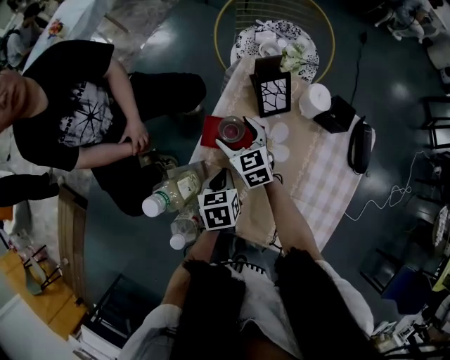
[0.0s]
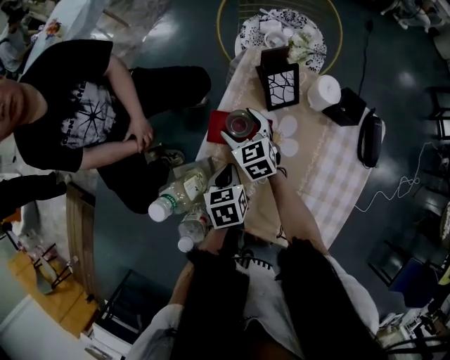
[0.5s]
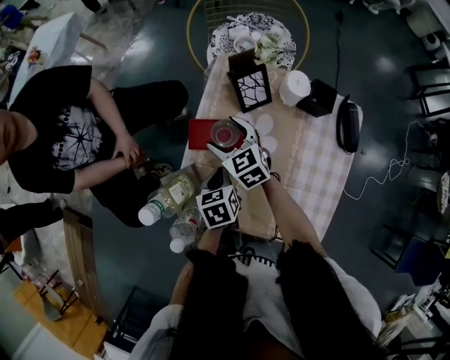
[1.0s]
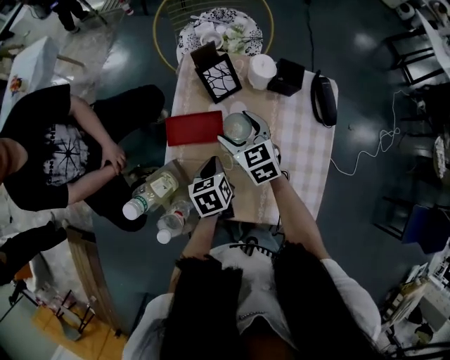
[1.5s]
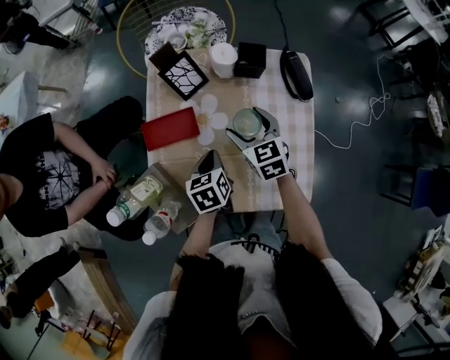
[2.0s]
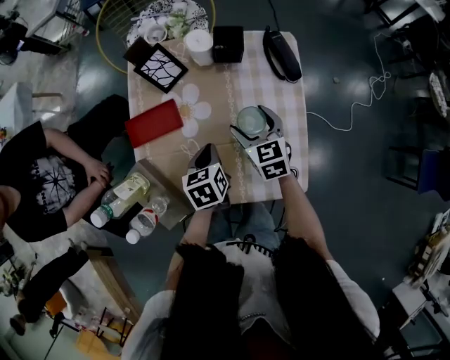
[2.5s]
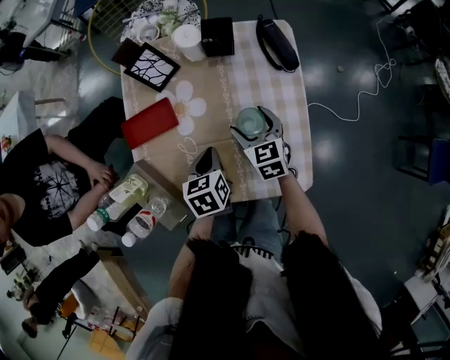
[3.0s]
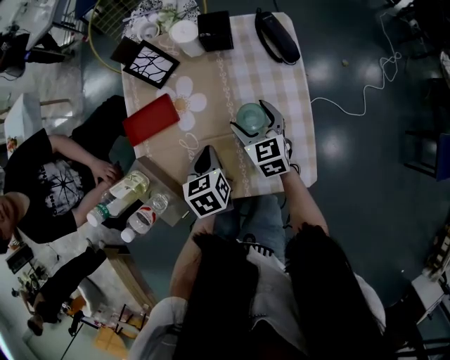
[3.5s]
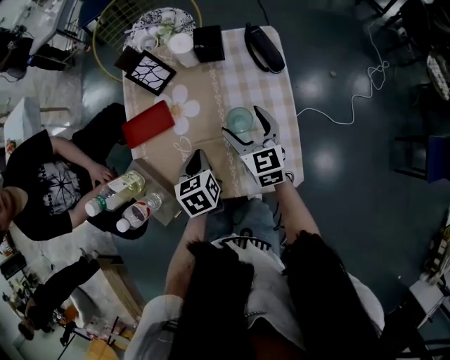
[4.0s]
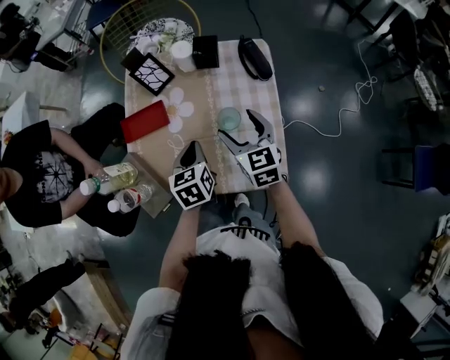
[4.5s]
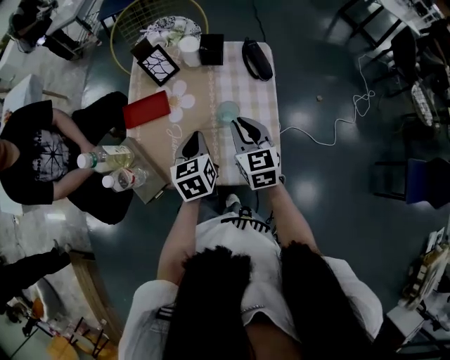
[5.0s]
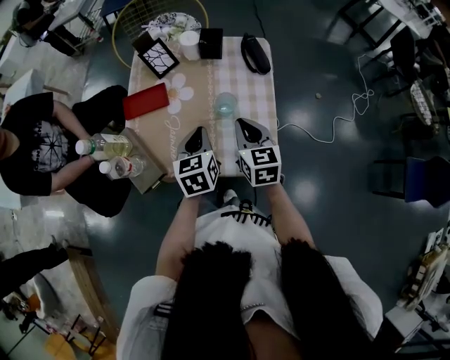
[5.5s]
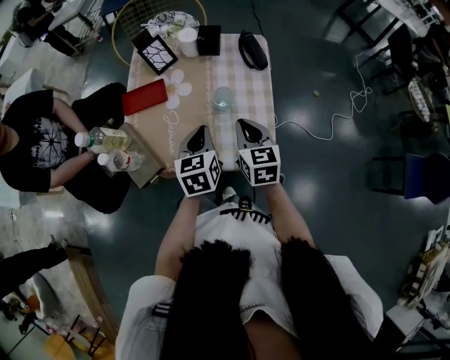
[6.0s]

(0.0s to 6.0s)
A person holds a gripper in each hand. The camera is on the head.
0.0s - 2.0s: The right gripper goes approximately 25 cm to the right and backward, and turns by some 30 degrees. The left gripper goes approximately 10 cm to the right.
2.0s - 4.0s: The right gripper heads to the right and backward, covering approximately 10 cm; the left gripper heads backward, covering roughly 5 cm.
4.0s - 6.0s: The left gripper goes some 15 cm upward, backward and to the right. Meanwhile the right gripper heads backward and upward, covering roughly 15 cm, and closes its fingers.

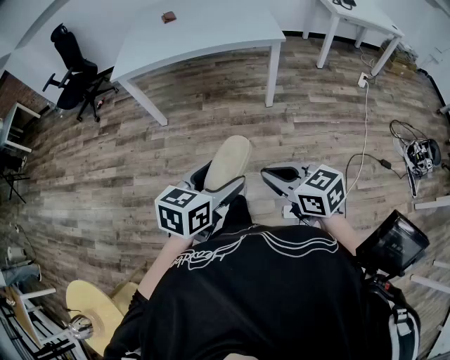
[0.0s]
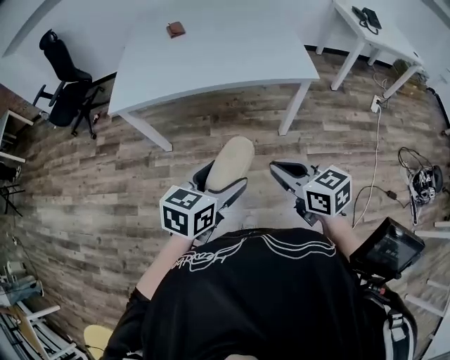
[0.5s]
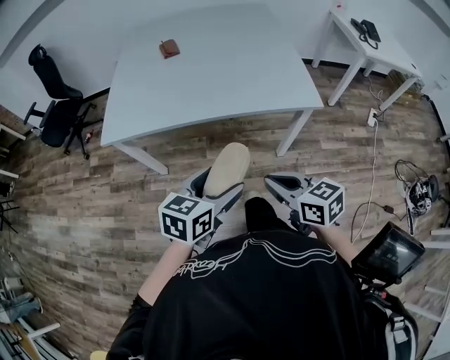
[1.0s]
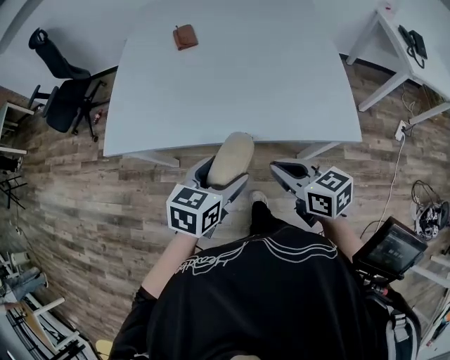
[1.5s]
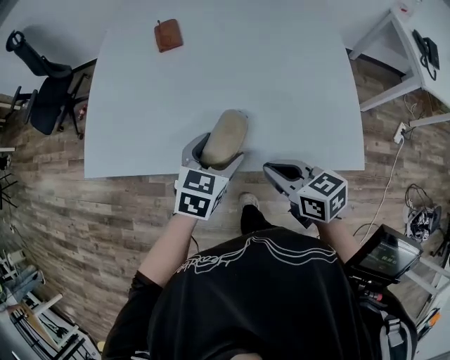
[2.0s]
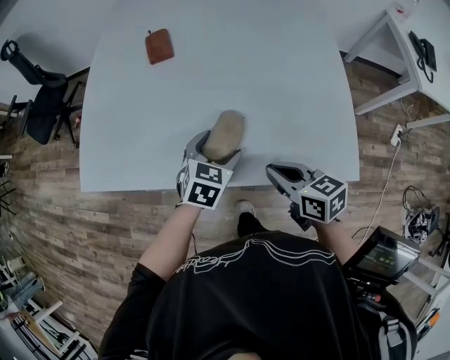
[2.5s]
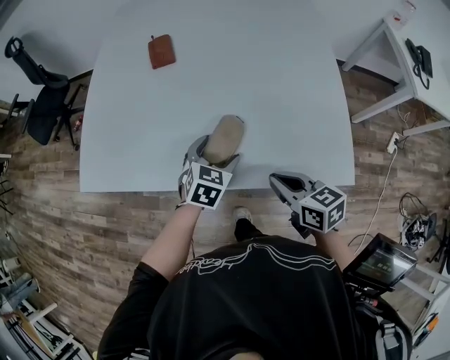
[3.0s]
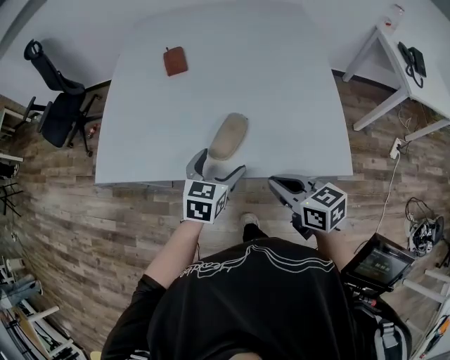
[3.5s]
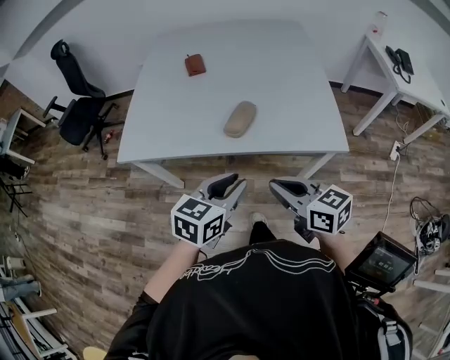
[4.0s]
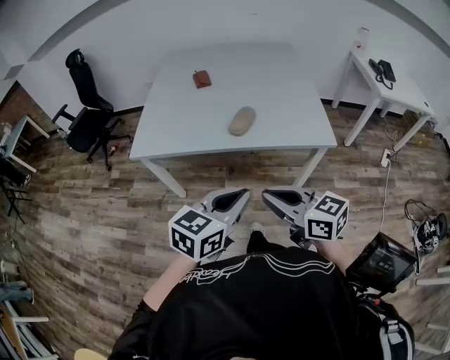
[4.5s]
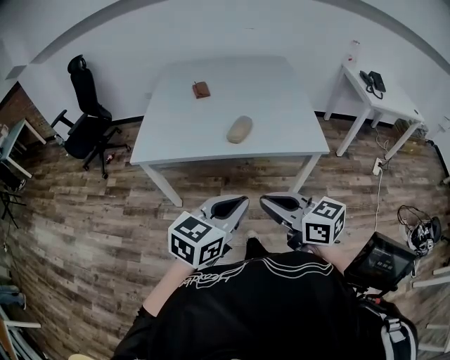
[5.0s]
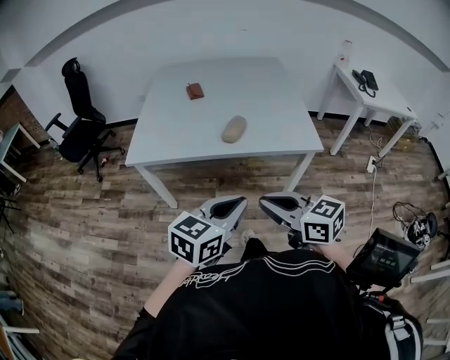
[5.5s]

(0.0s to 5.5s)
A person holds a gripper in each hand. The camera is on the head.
0.0s - 2.0s: The pair of grippers is taken forward, roughly 70 cm.
2.0s - 3.5s: The left gripper reaches approximately 5 cm downward, then returns, while the right gripper shifts by about 5 cm.
3.5s - 5.5s: The two grippers go about 40 cm backward and upward. The left gripper rotates some 30 degrees, and closes up.

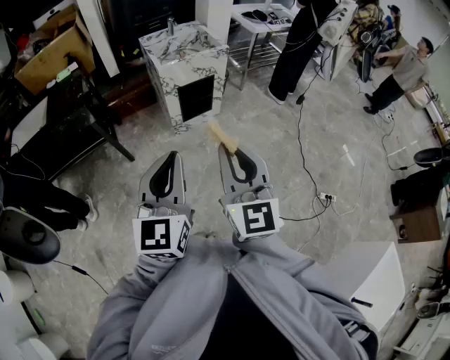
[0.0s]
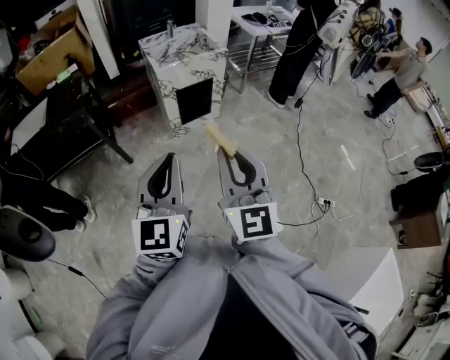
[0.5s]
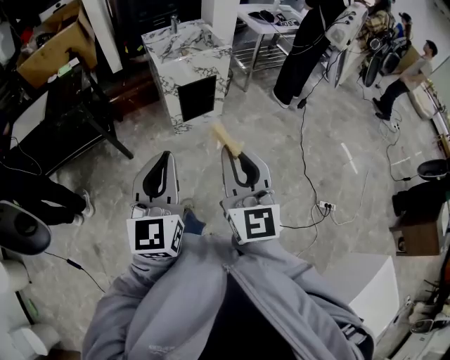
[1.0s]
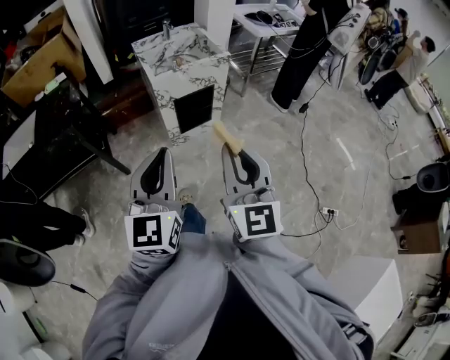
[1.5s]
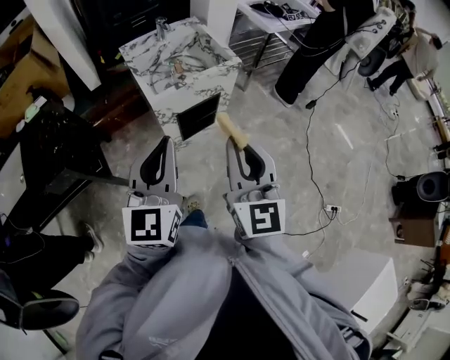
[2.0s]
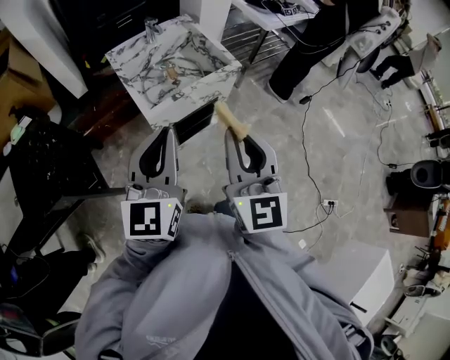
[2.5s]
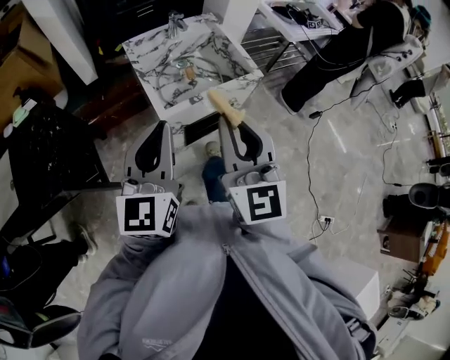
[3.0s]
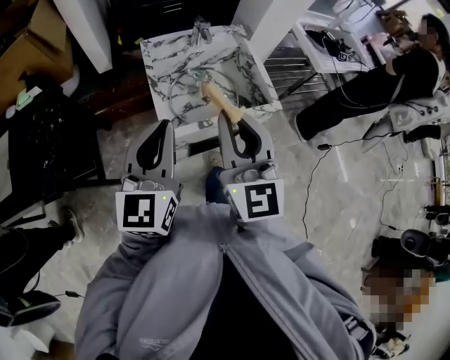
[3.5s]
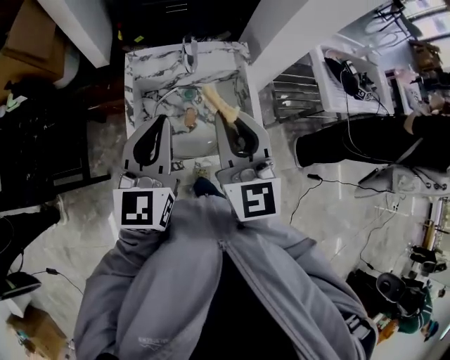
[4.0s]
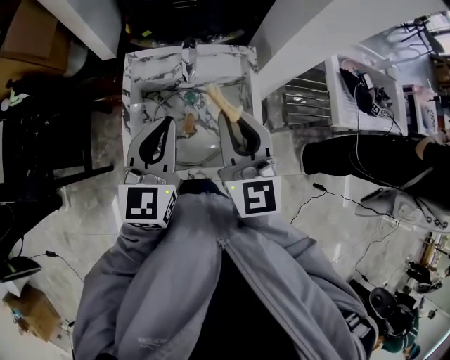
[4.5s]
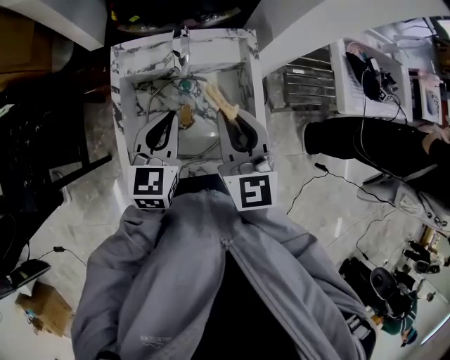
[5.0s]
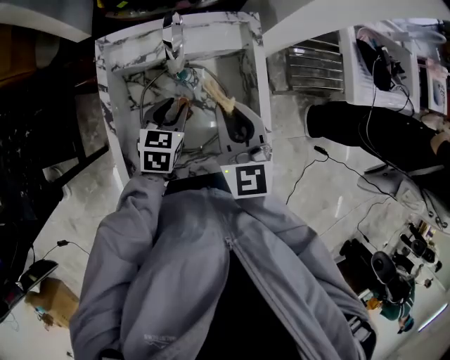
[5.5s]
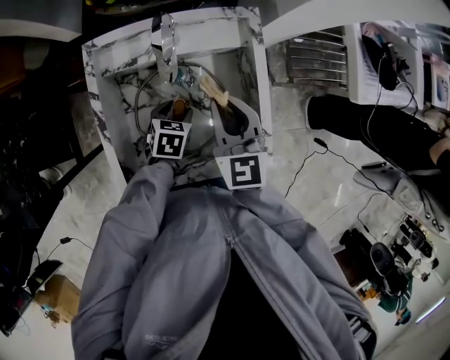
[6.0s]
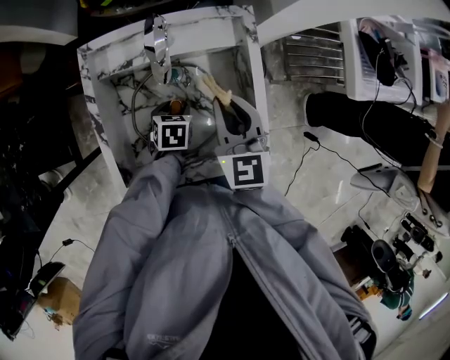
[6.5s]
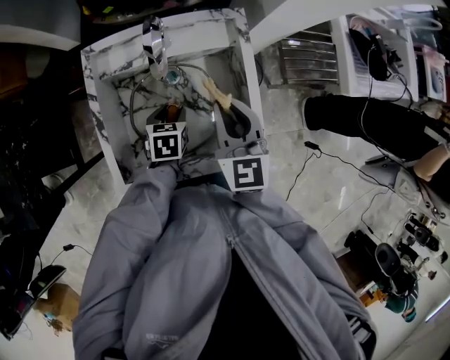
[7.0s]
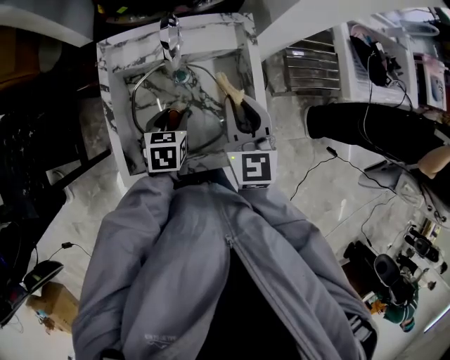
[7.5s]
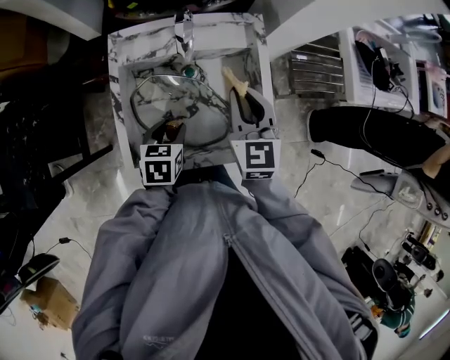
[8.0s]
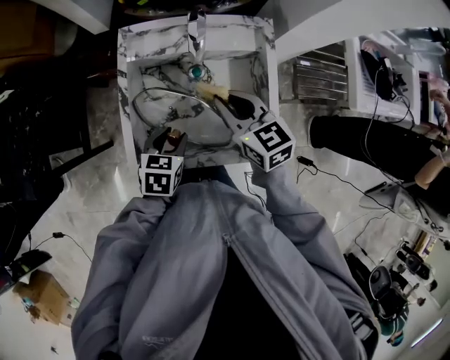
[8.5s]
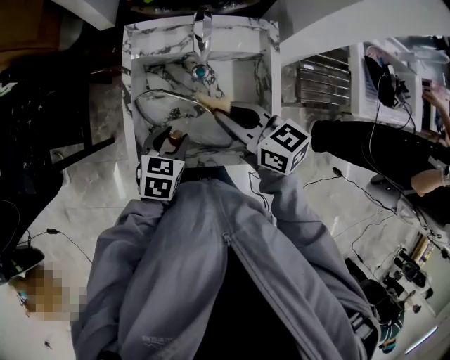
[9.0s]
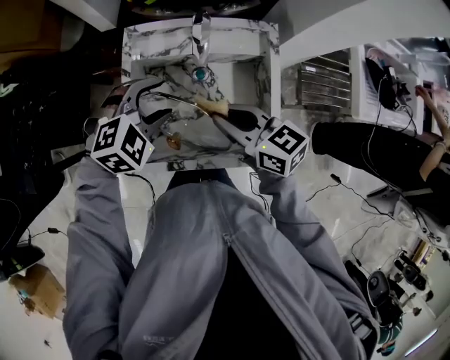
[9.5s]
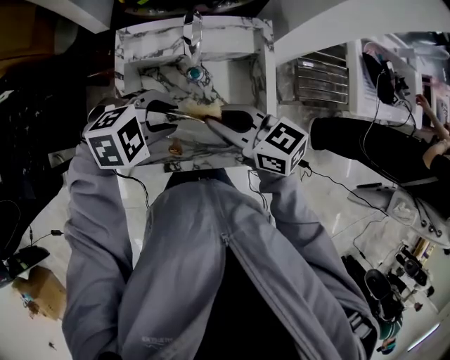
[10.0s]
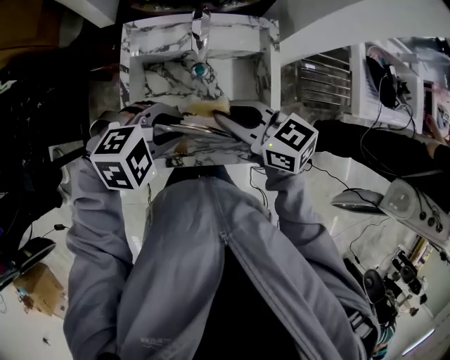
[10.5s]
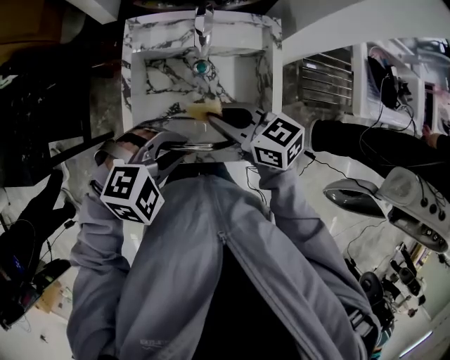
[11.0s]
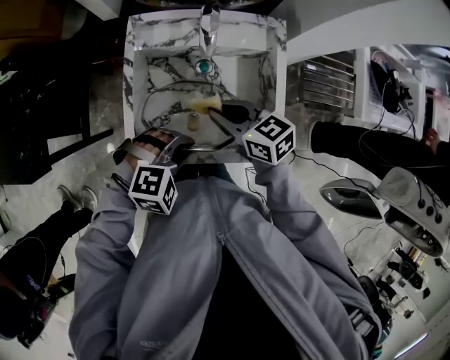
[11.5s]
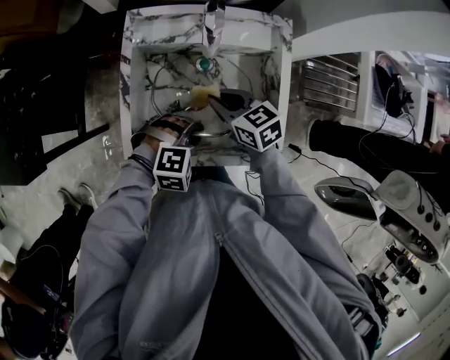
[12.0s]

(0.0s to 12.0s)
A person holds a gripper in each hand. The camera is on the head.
0.0s - 2.0s: The two grippers travel together, forward, approximately 40 cm.
2.0s - 4.0s: The two grippers travel together, approximately 50 cm. The right gripper swivels some 30 degrees. Meanwhile the left gripper rotates approximately 20 degrees.
4.0s - 6.0s: The left gripper is displaced downward by approximately 40 cm, tips its fingers downward by approximately 60 degrees, and opens its fingers. Meanwhile the right gripper is displaced downward and forward by some 30 cm, and changes its angle by roughly 20 degrees.
6.0s - 8.0s: The right gripper shifts by approximately 5 cm. Meanwhile the left gripper goes roughly 15 cm upward and backward.
8.0s - 10.0s: The right gripper shifts by roughly 10 cm, and swivels some 50 degrees, while the left gripper goes roughly 10 cm upward, and rotates around the line of its fingers by approximately 70 degrees, clockwise from behind.
10.0s - 12.0s: The two grippers go some 15 cm downward.

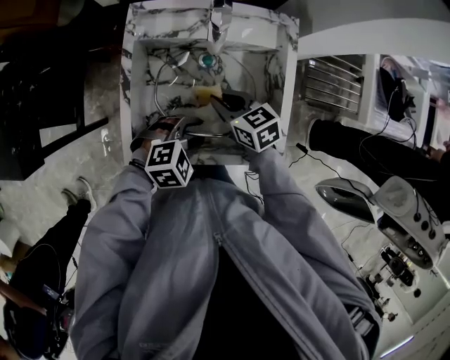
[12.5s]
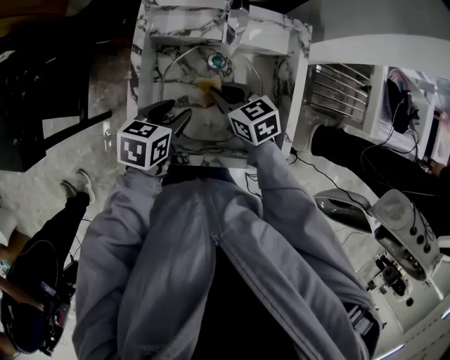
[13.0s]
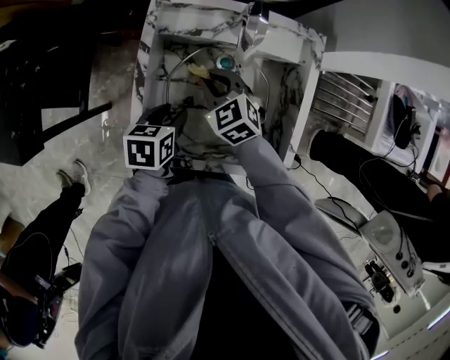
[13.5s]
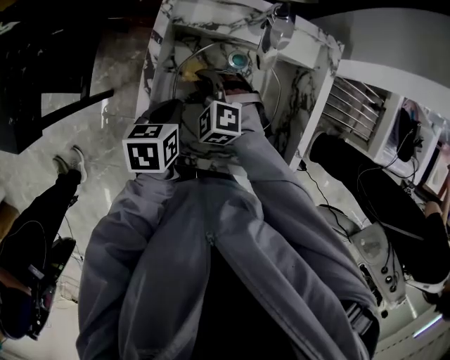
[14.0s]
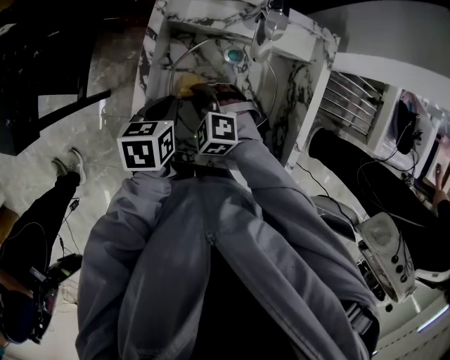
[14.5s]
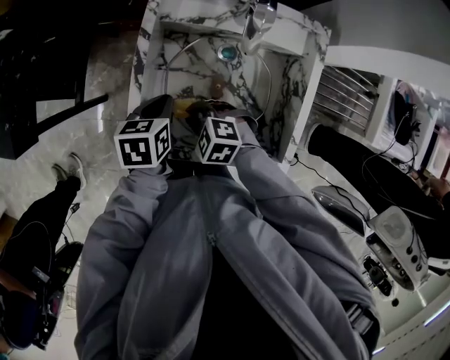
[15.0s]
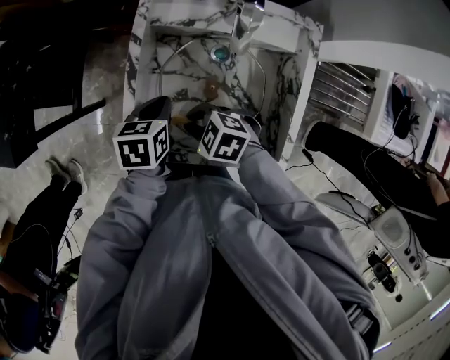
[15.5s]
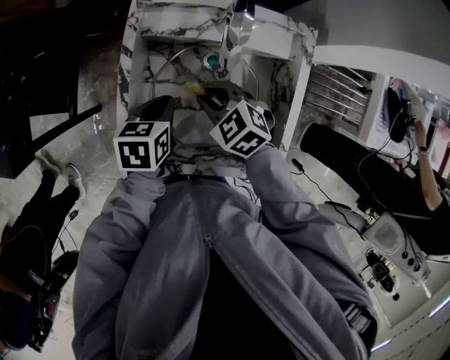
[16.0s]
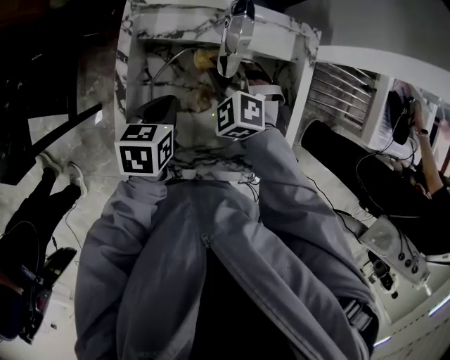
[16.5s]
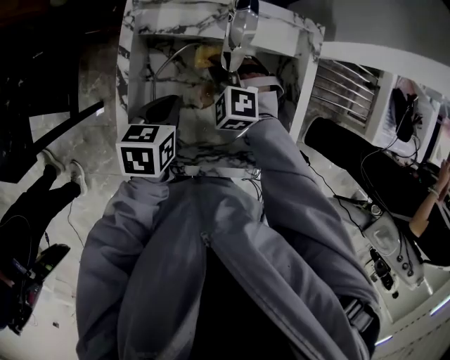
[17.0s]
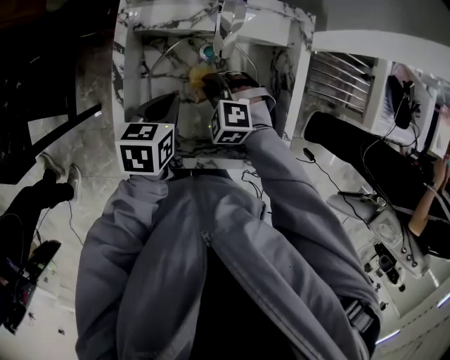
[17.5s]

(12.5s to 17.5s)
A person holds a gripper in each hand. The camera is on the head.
12.5s - 15.0s: The left gripper moves about 15 cm, twists roughly 80 degrees counterclockwise, seen from behind, and closes up; the right gripper changes place by approximately 15 cm, and rotates around the line of its fingers by about 50 degrees, counterclockwise from behind.
15.0s - 17.5s: The right gripper turns by roughly 20 degrees, while the left gripper changes place by some 5 cm.
